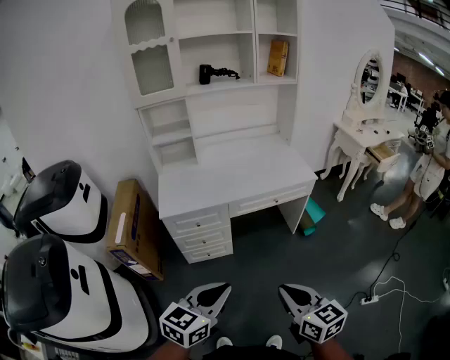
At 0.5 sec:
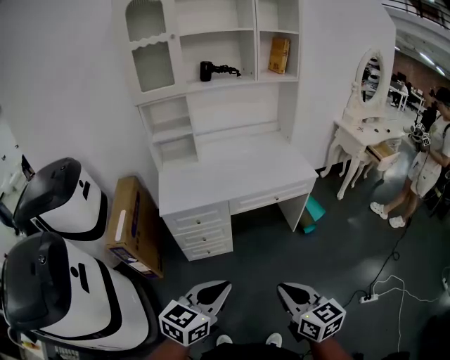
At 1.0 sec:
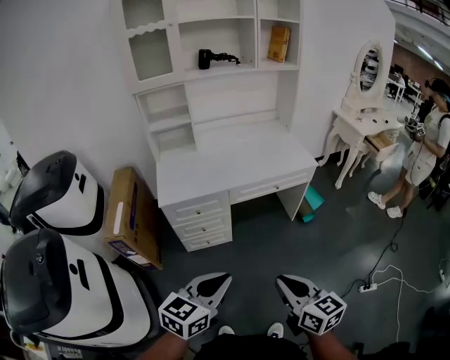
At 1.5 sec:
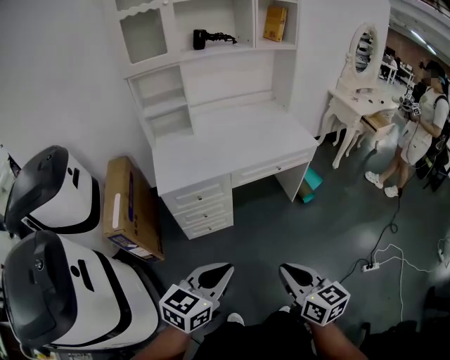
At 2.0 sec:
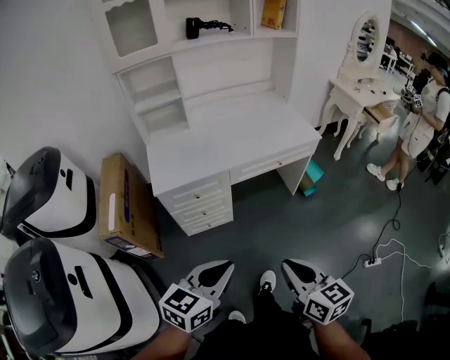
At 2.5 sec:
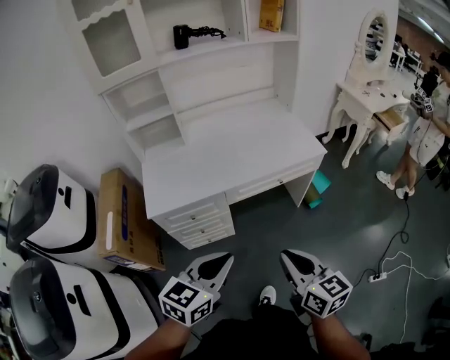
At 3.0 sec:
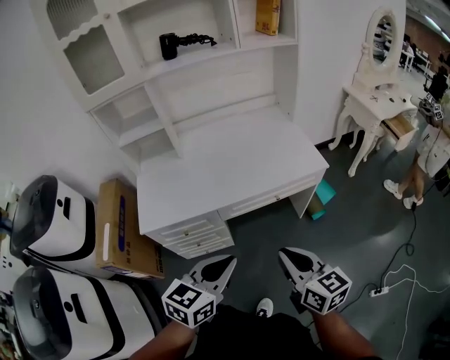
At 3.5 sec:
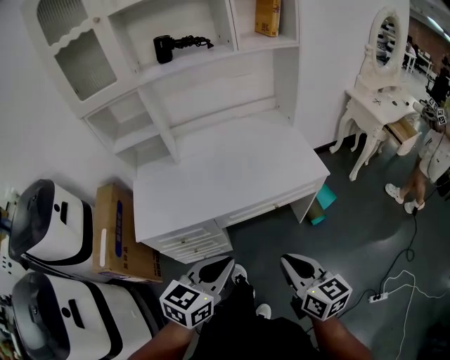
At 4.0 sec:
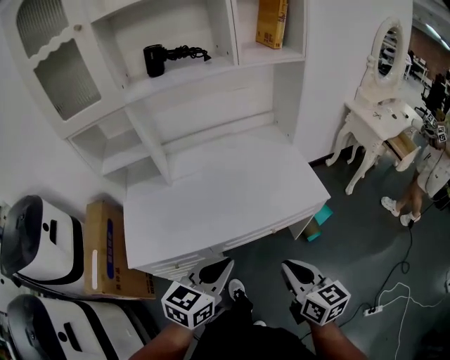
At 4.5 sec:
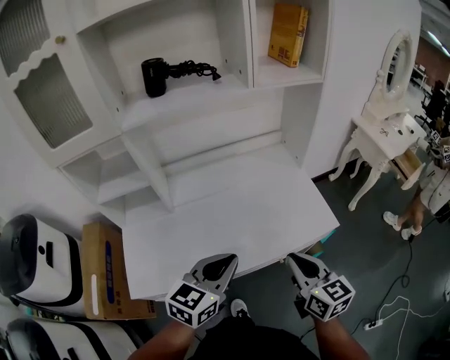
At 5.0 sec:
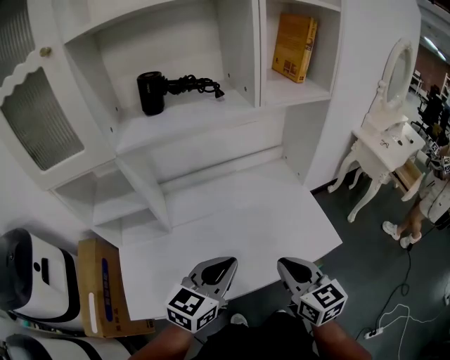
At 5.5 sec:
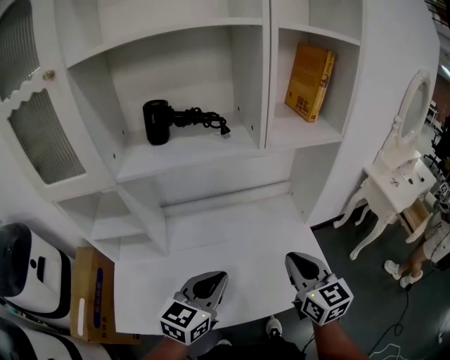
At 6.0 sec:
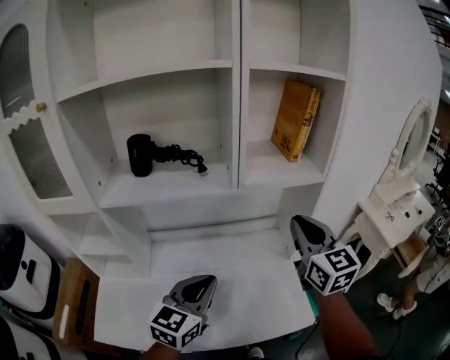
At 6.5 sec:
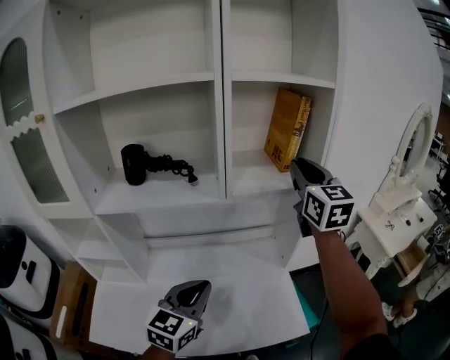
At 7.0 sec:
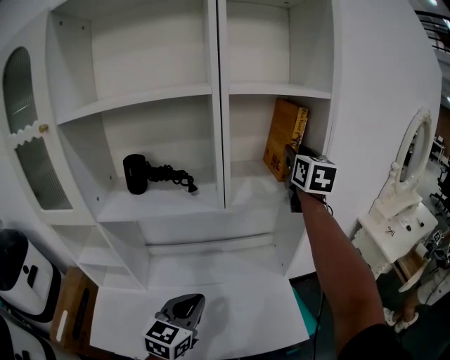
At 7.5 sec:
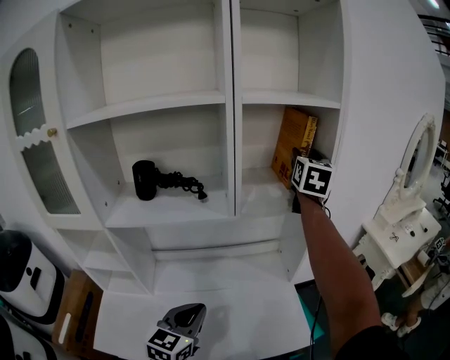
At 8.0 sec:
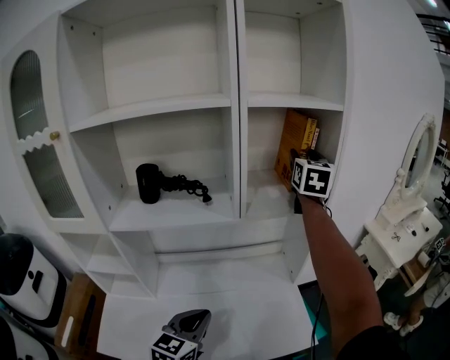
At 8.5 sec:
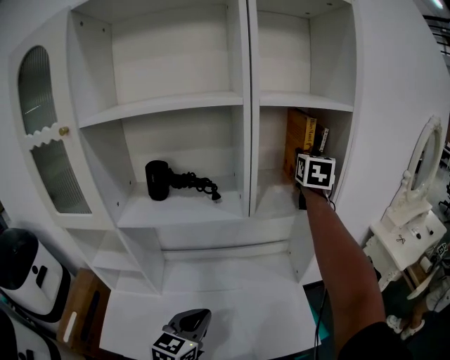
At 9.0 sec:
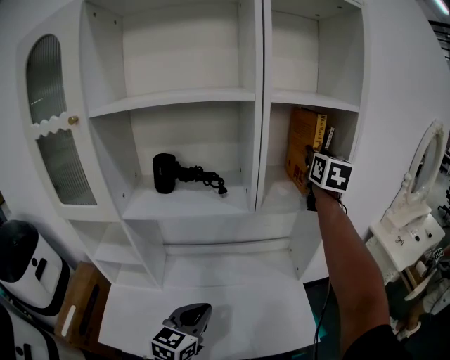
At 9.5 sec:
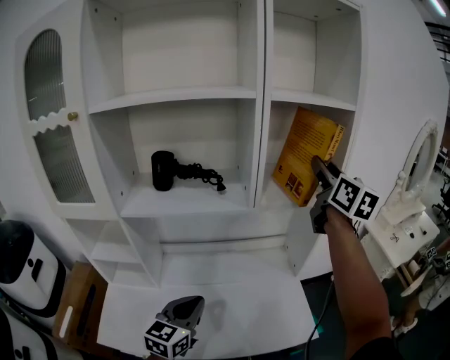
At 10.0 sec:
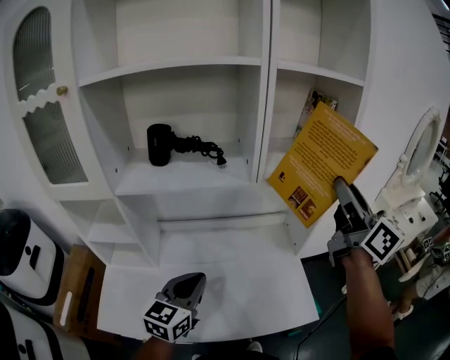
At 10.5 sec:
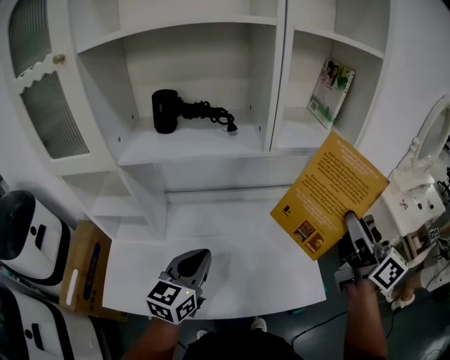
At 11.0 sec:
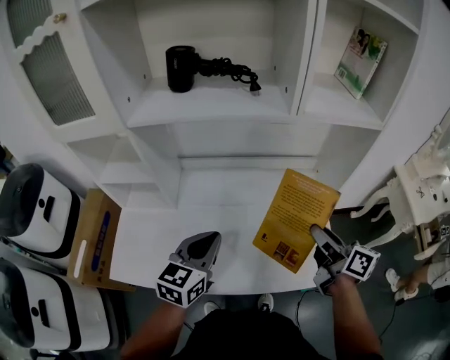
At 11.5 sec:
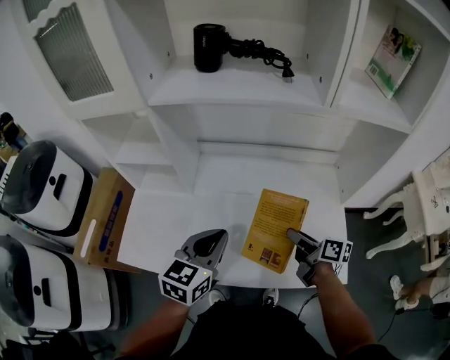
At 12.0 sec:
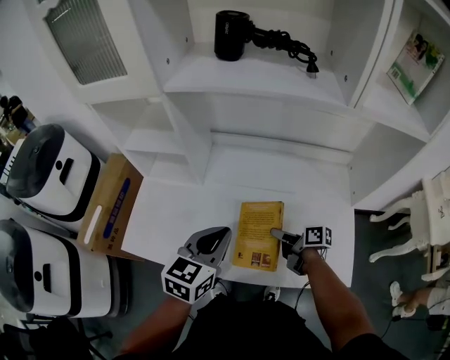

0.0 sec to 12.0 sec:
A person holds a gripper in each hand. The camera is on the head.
0.0 sec to 2.0 sec: The two grippers go approximately 5 cm to the left.
2.0 sec to 4.0 sec: The two grippers go about 40 cm forward.
4.0 sec to 6.0 sec: The right gripper travels forward and upward by roughly 50 cm, and swivels approximately 30 degrees; the left gripper heads forward, covering some 35 cm.
6.0 sec to 8.0 sec: The right gripper heads forward and upward, covering some 25 cm, rotates about 20 degrees, and opens.
8.0 sec to 10.0 sec: The right gripper is displaced backward by approximately 25 cm, and turns by about 40 degrees; the left gripper changes place by approximately 5 cm.
10.0 sec to 12.0 sec: The left gripper goes approximately 10 cm downward. Meanwhile the right gripper goes roughly 50 cm downward, and angles its fingers downward, by about 40 degrees.

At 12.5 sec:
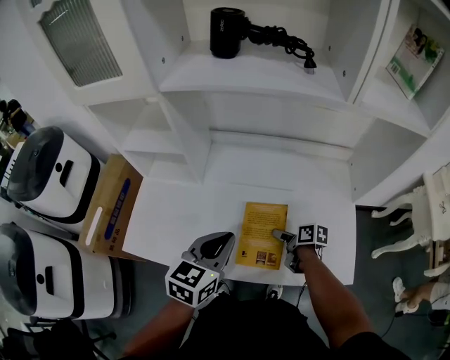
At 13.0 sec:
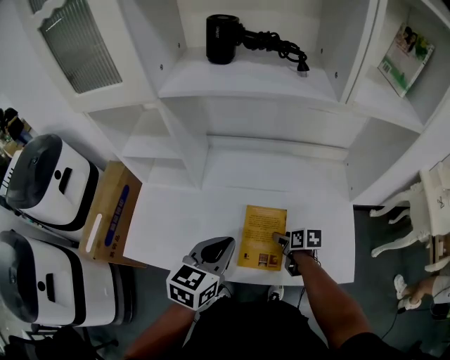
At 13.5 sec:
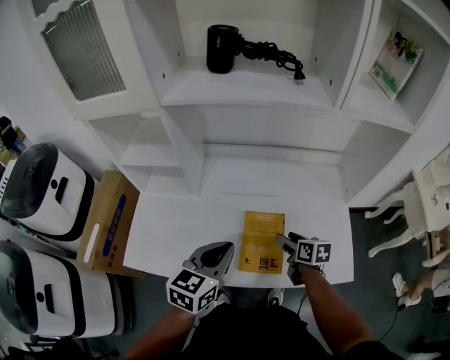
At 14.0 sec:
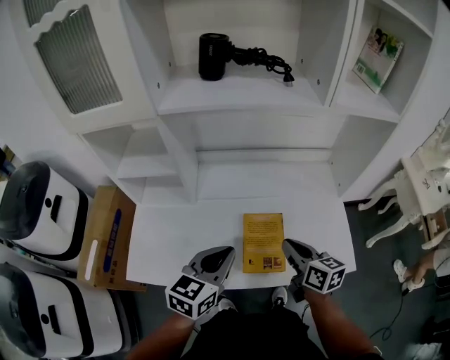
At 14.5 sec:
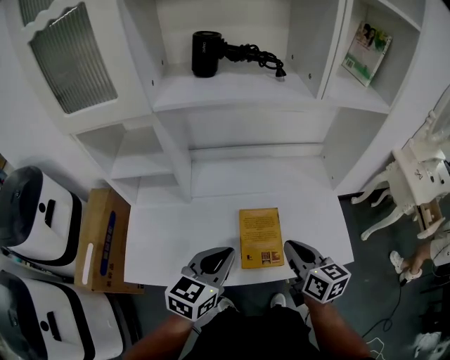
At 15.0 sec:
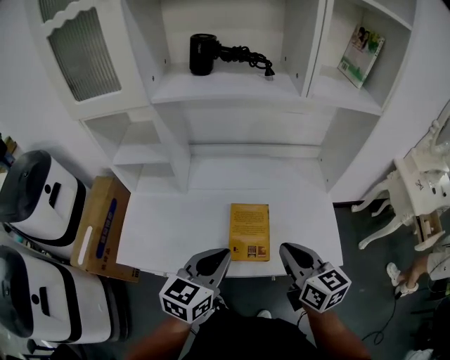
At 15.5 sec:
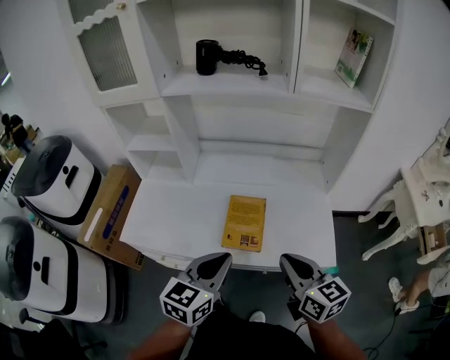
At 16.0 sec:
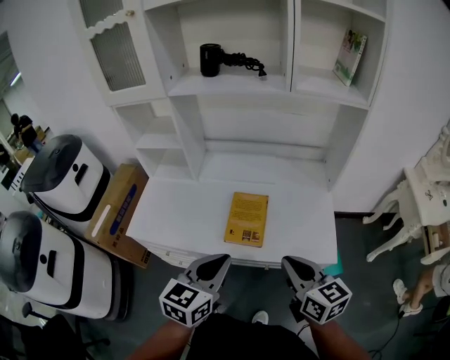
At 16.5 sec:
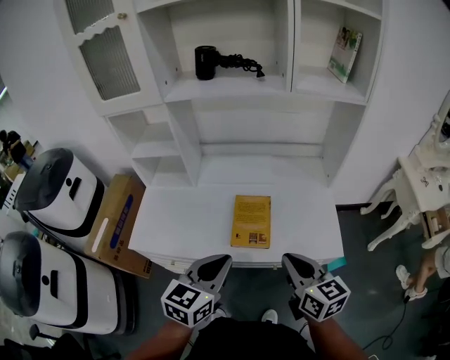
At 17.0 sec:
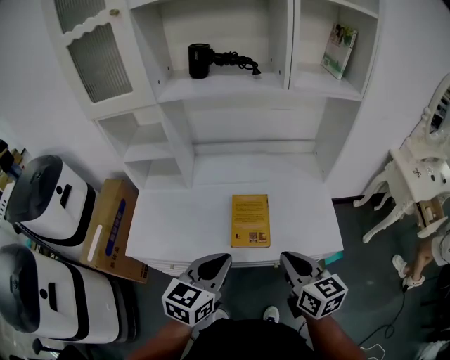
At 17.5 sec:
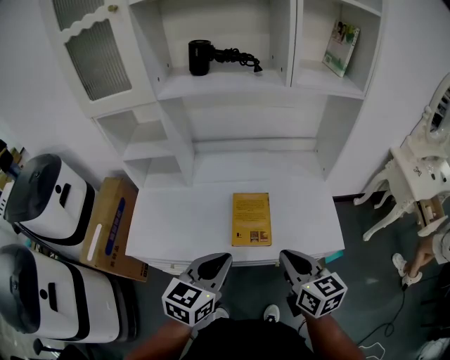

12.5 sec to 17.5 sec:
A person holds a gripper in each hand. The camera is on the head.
12.5 sec to 15.0 sec: The right gripper is displaced upward and backward by about 30 cm, turns by roughly 50 degrees, and closes up. The left gripper travels backward by approximately 10 cm.
15.0 sec to 17.5 sec: The grippers both shift backward by some 10 cm.

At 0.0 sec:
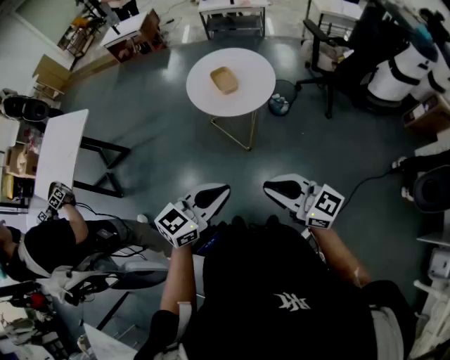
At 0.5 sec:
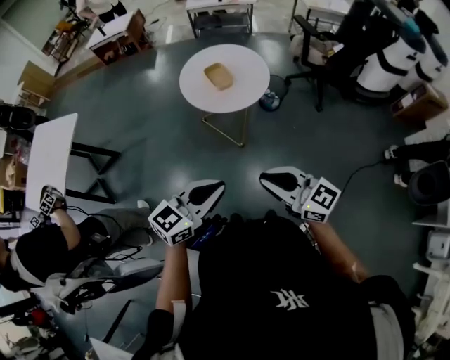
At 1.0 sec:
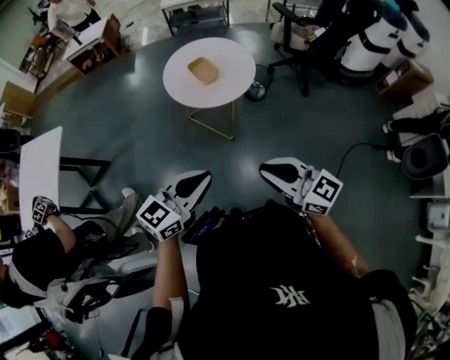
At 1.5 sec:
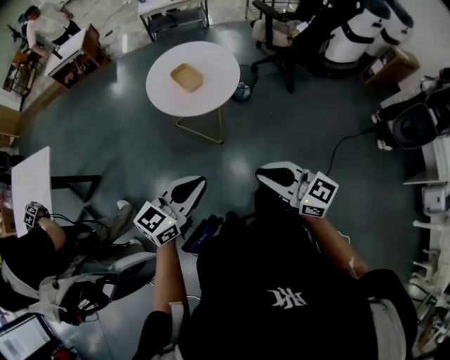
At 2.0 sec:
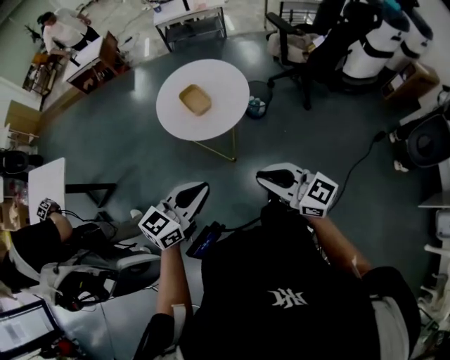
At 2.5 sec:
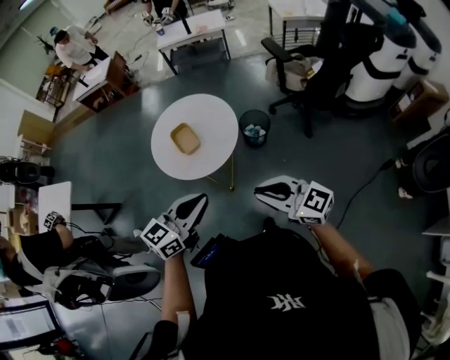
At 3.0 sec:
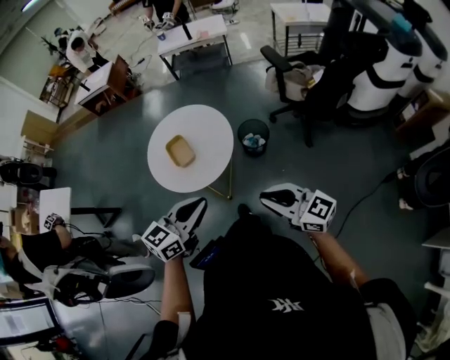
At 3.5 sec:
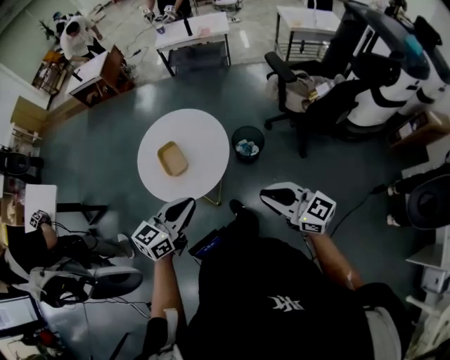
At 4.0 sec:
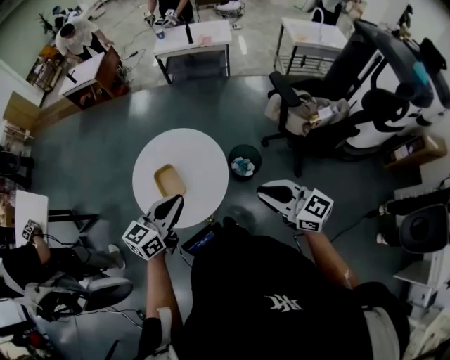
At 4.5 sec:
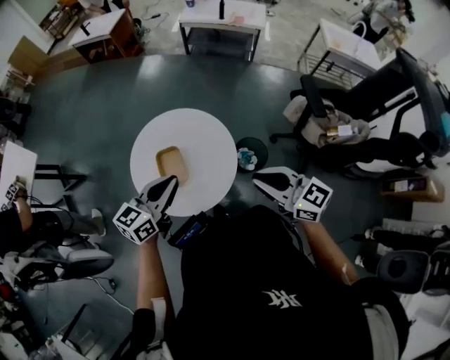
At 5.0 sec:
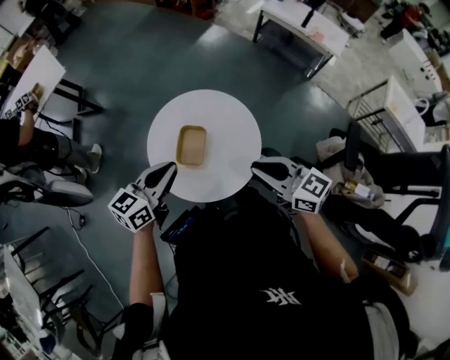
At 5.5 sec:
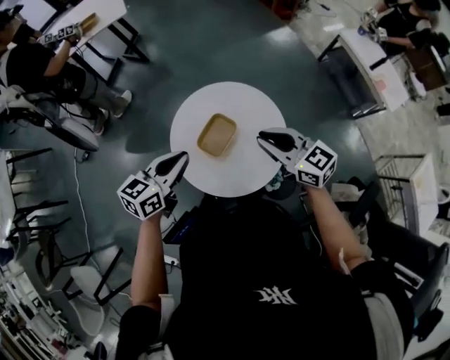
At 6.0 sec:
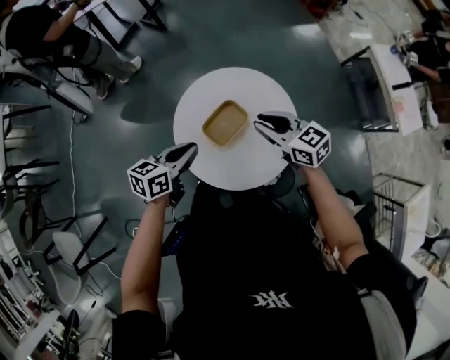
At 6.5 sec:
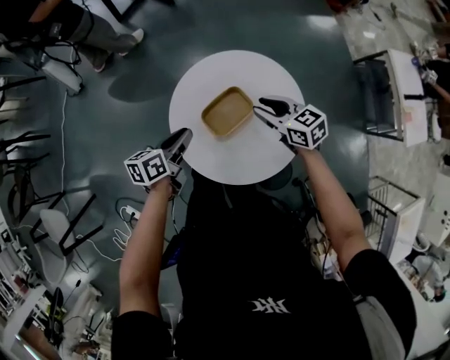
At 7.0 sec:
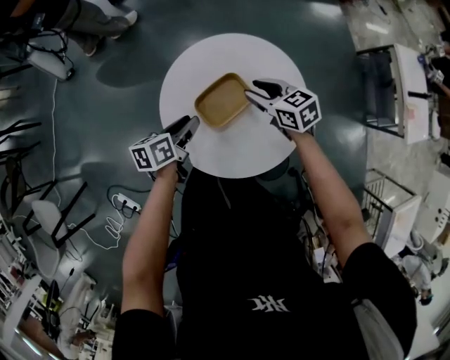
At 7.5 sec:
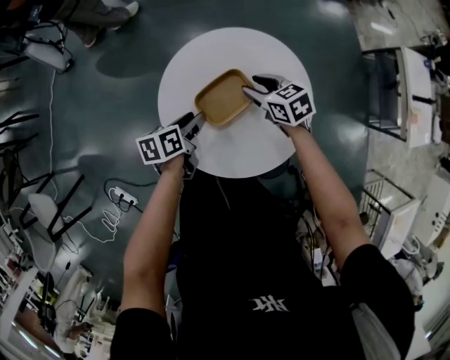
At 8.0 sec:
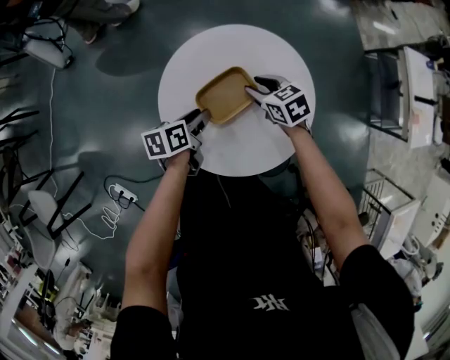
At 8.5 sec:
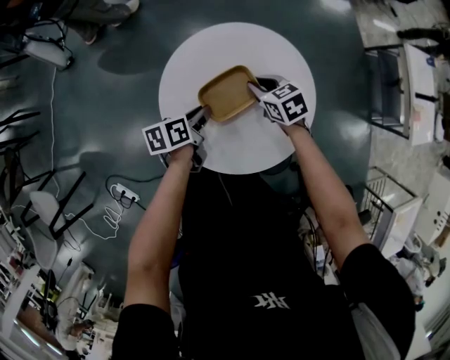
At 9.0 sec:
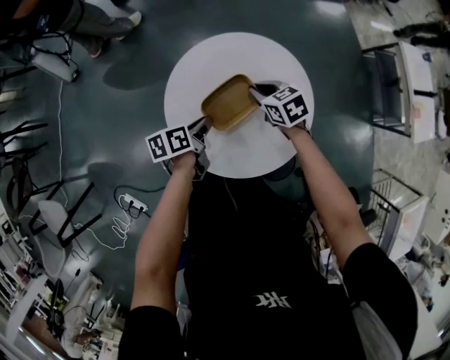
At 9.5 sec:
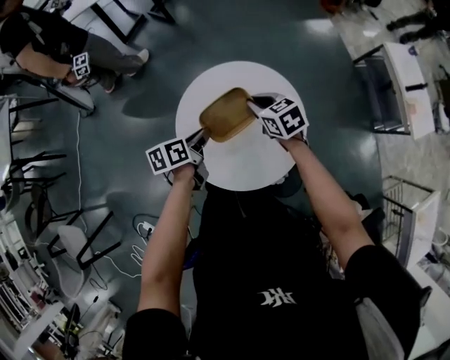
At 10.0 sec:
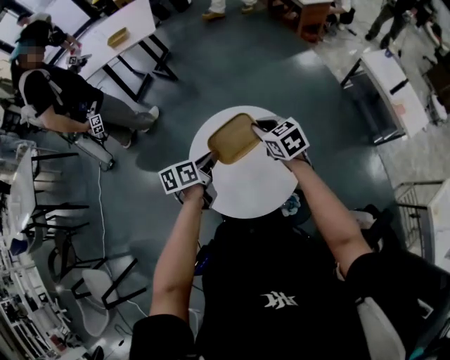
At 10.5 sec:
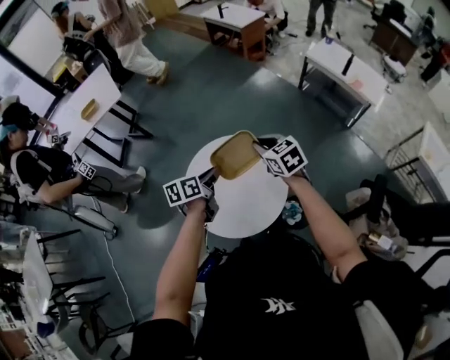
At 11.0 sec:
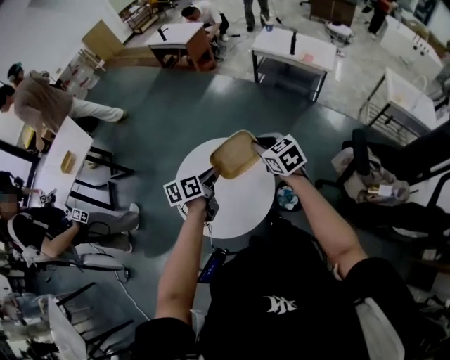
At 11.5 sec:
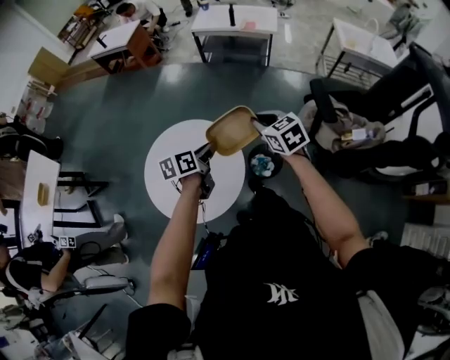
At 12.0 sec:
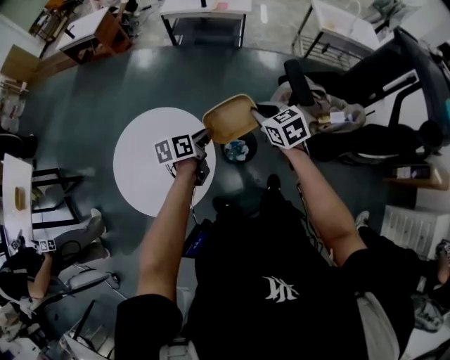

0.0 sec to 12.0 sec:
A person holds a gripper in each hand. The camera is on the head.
0.0 sec to 2.0 sec: Both grippers move forward, about 10 cm.
2.0 sec to 4.0 sec: Both grippers travel together forward and to the right, roughly 40 cm.
4.0 sec to 6.0 sec: The right gripper changes place by some 40 cm, and rotates approximately 70 degrees; the left gripper goes roughly 15 cm downward, and swivels roughly 70 degrees.
6.0 sec to 8.0 sec: The two grippers go approximately 20 cm downward. The left gripper swivels some 30 degrees, and opens. Meanwhile the right gripper changes its angle by roughly 30 degrees, and opens.
8.0 sec to 10.0 sec: The grippers both shift upward by roughly 20 cm. The right gripper rotates about 20 degrees, and closes; the left gripper closes.
10.0 sec to 12.0 sec: The left gripper shifts by roughly 35 cm, and swivels approximately 60 degrees. Meanwhile the right gripper ends up about 40 cm from where it was, and swivels approximately 60 degrees.
